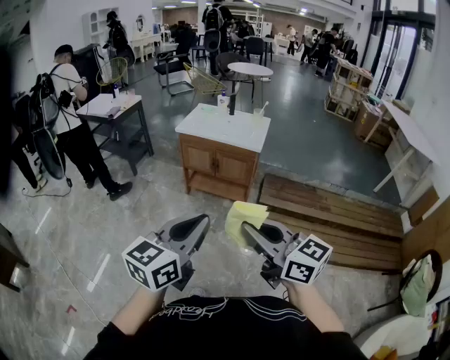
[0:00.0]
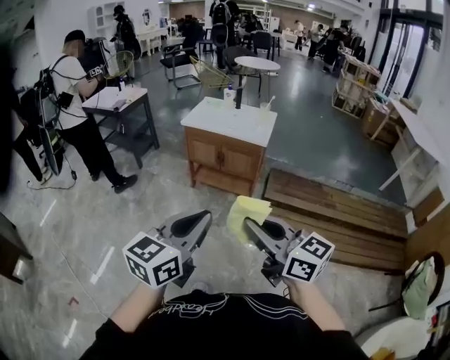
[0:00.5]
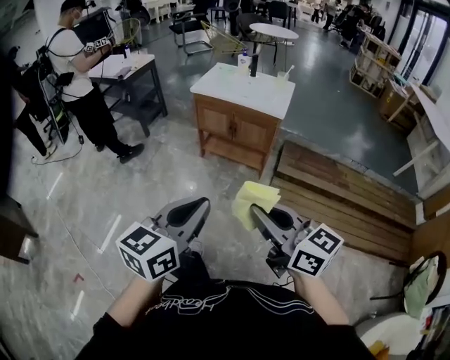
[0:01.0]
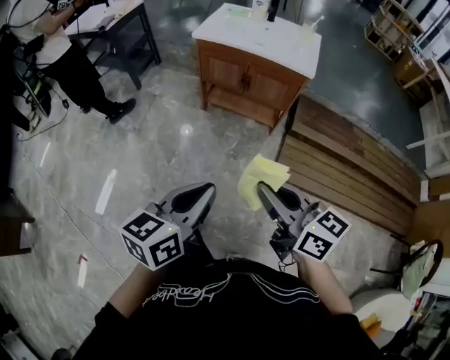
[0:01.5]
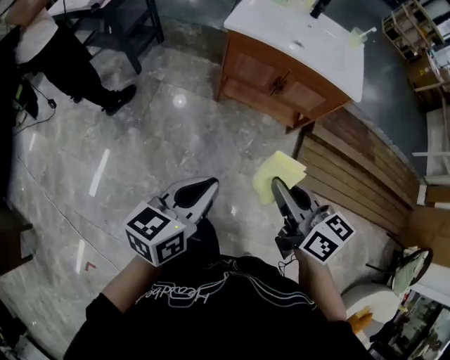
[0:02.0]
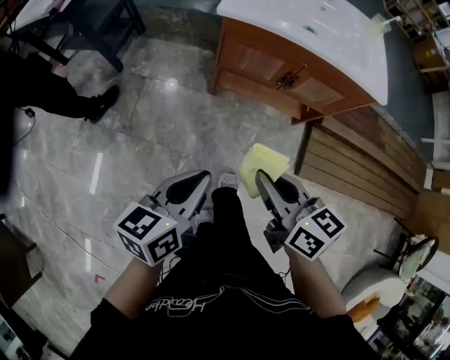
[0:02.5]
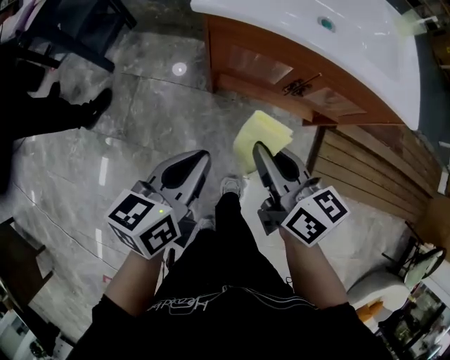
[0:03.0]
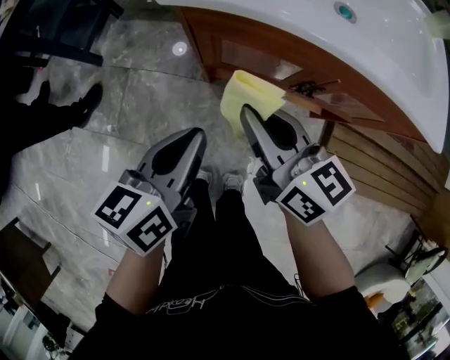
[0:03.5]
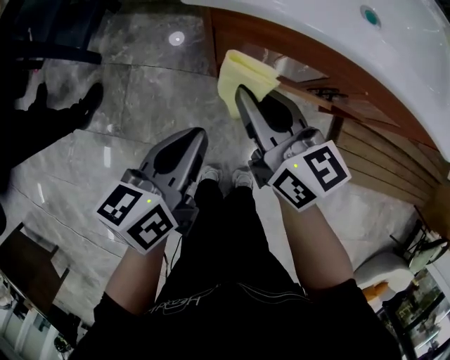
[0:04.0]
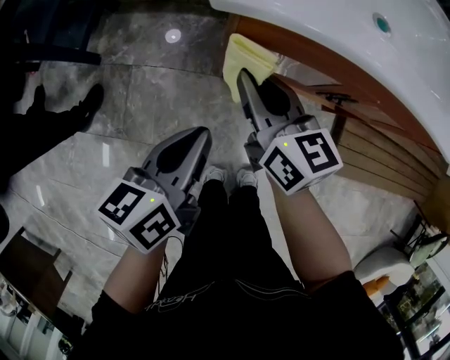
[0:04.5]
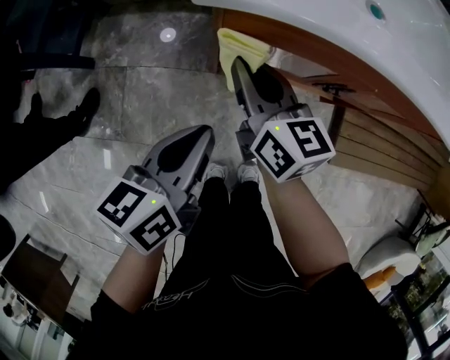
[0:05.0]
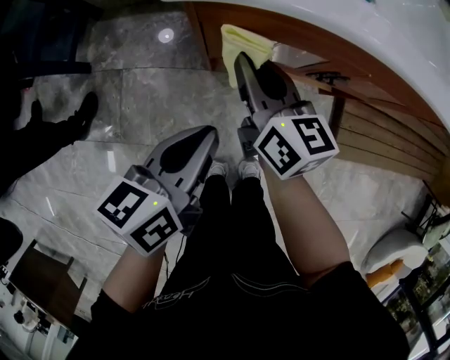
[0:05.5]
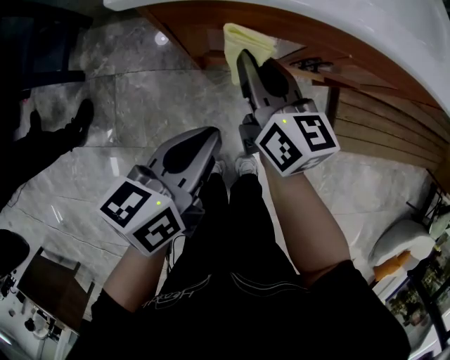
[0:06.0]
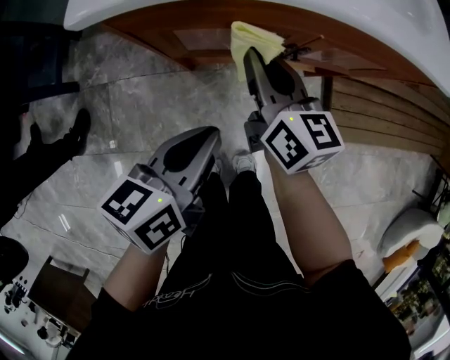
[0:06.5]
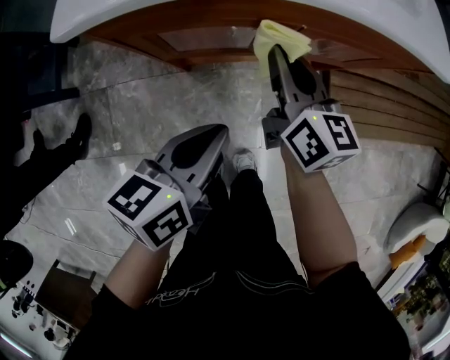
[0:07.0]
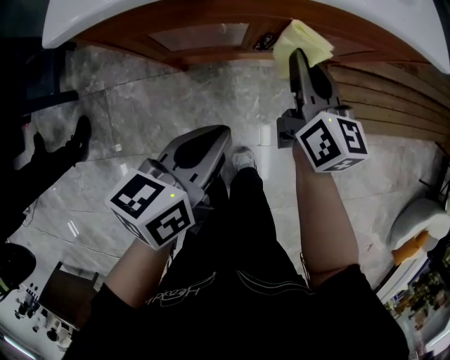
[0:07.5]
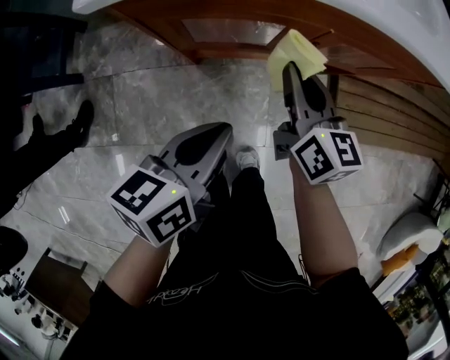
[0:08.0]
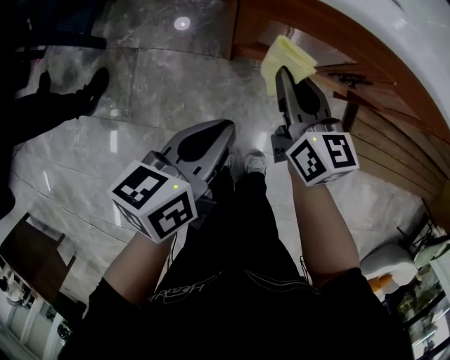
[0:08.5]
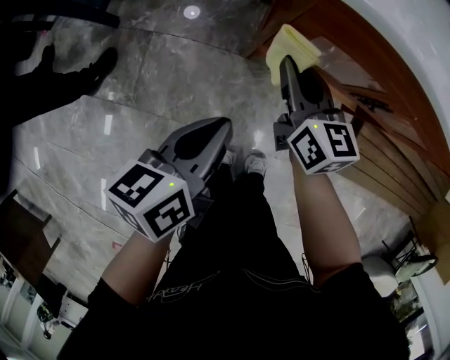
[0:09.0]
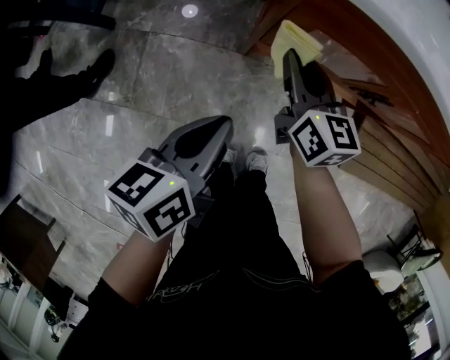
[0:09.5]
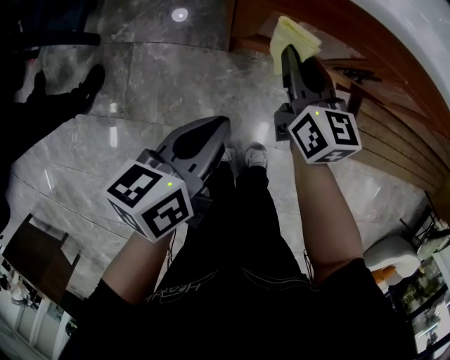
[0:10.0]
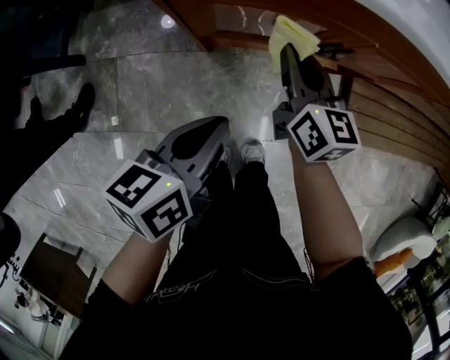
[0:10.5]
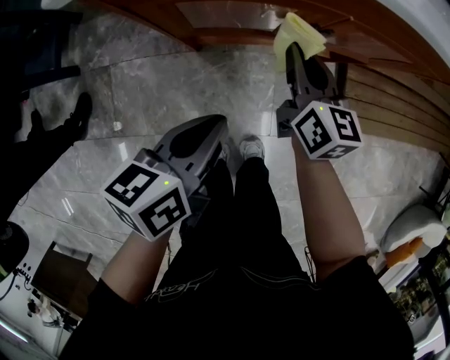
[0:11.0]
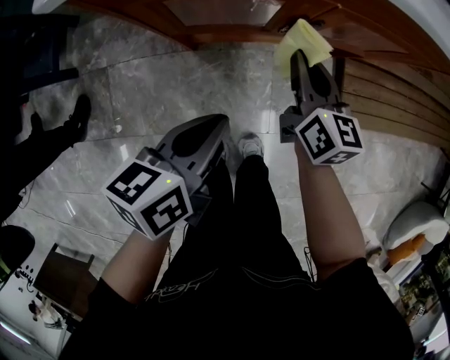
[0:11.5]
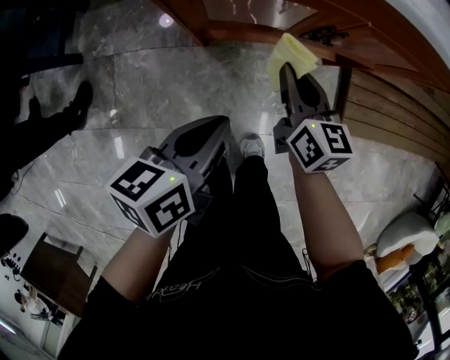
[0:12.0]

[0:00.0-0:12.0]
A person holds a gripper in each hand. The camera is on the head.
0:00.0 to 0:02.0: The pair of grippers is taken forward and to the left, some 40 cm. The two grippers go approximately 25 cm downward. The right gripper swivels roughly 30 degrees. Meanwhile the left gripper turns by roughly 30 degrees.
0:02.0 to 0:04.0: The grippers both shift forward and downward by approximately 50 cm.
0:04.0 to 0:06.0: Both grippers travel together to the right, roughly 5 cm. The right gripper changes its angle by about 20 degrees.
0:06.0 to 0:08.0: The left gripper shifts roughly 5 cm to the right, while the right gripper moves to the right, roughly 10 cm.
0:08.0 to 0:10.0: The grippers both shift to the left by approximately 10 cm.
0:10.0 to 0:12.0: The two grippers go some 10 cm to the right.

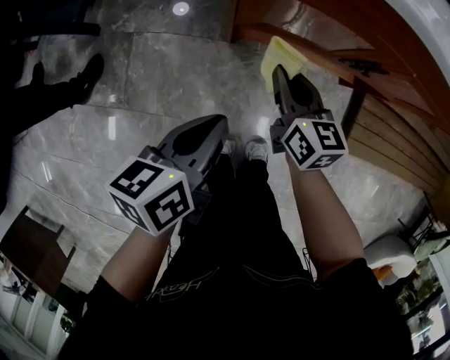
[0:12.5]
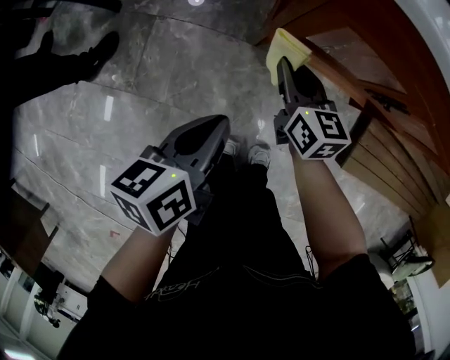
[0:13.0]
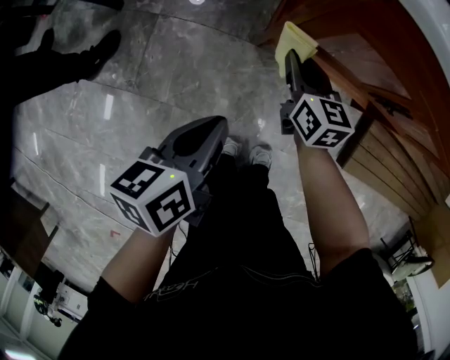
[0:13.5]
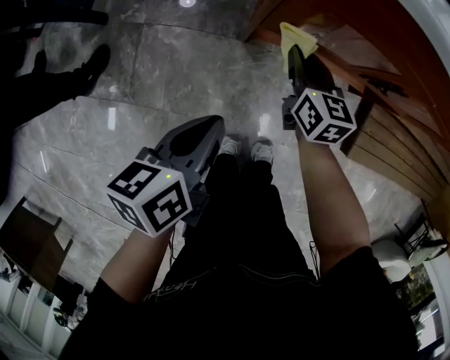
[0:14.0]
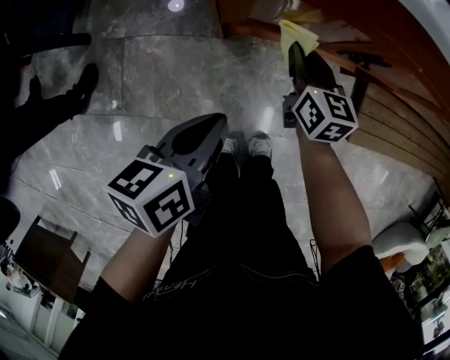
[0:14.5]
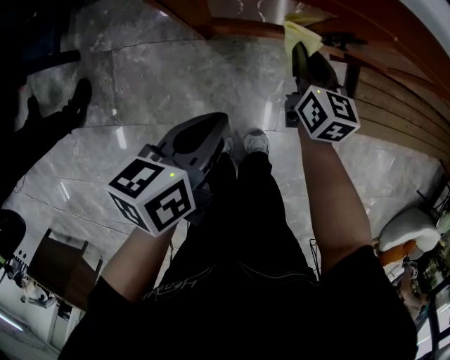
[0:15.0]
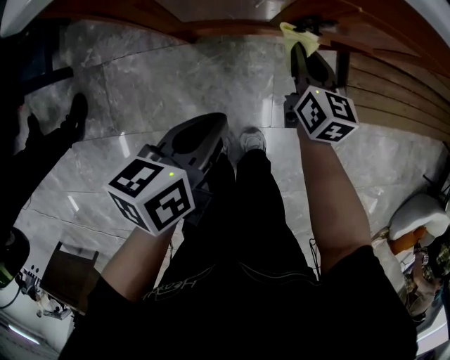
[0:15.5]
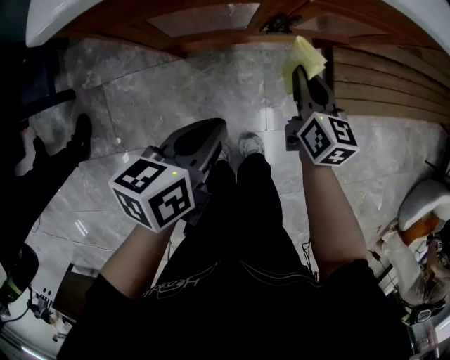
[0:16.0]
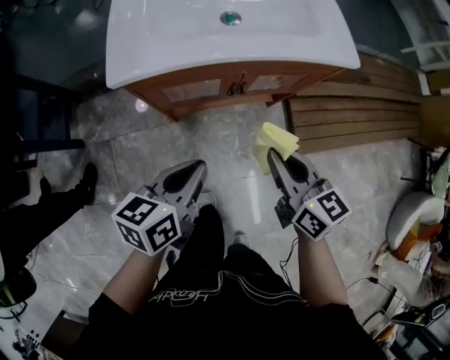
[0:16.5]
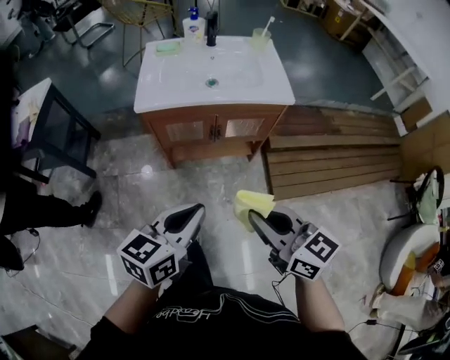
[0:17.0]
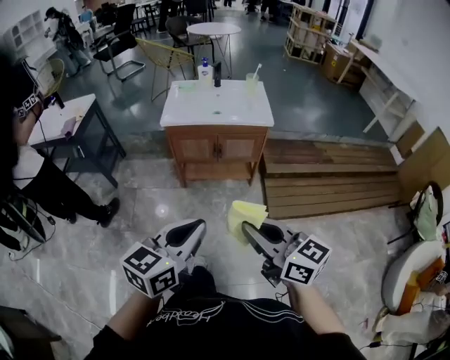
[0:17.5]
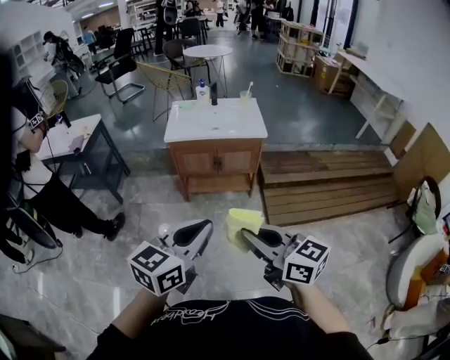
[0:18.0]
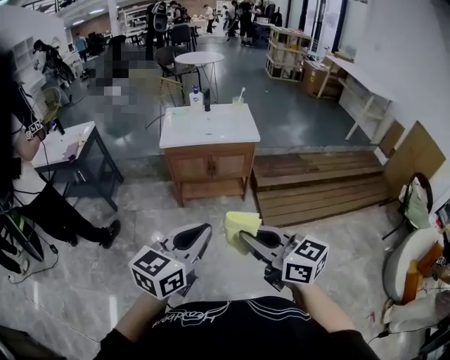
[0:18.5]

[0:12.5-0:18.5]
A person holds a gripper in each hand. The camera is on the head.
0:12.5 to 0:14.5: The right gripper moves forward, approximately 5 cm. The left gripper goes to the left and returns, roughly 10 cm each way.
0:14.5 to 0:16.5: The left gripper moves upward and to the right, roughly 20 cm, and changes its angle by roughly 30 degrees. The right gripper heads upward, to the right and backward, covering about 35 cm.
0:16.5 to 0:18.5: The two grippers travel together, backward, approximately 50 cm. Both grippers move upward, some 35 cm. The right gripper rotates roughly 30 degrees, while the left gripper changes its angle by some 40 degrees.

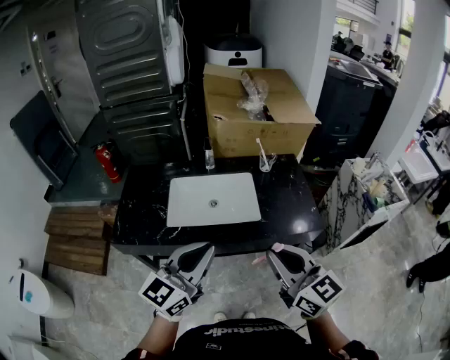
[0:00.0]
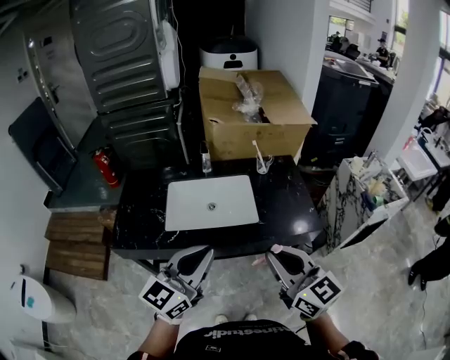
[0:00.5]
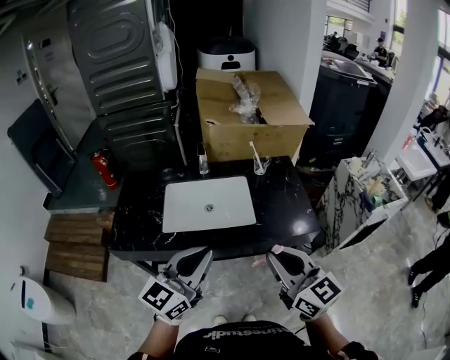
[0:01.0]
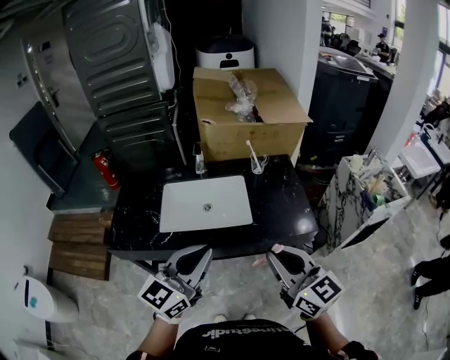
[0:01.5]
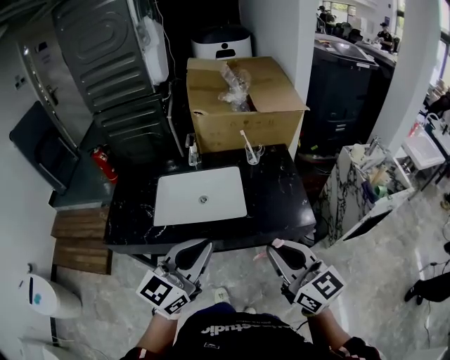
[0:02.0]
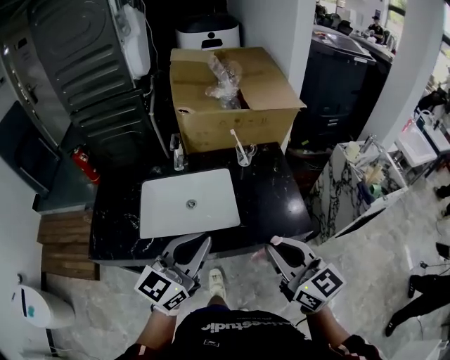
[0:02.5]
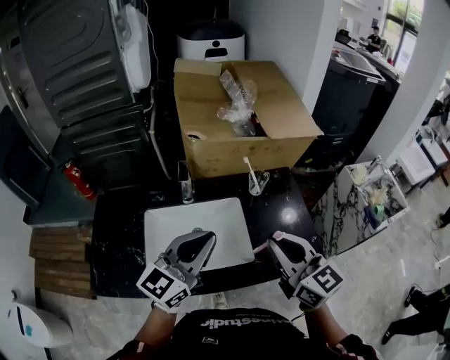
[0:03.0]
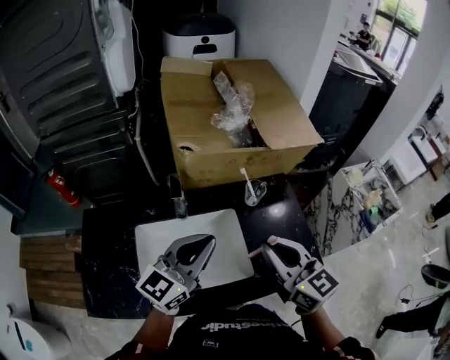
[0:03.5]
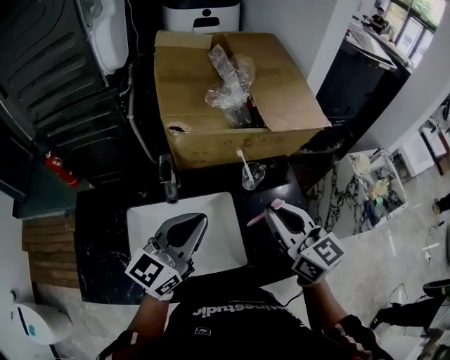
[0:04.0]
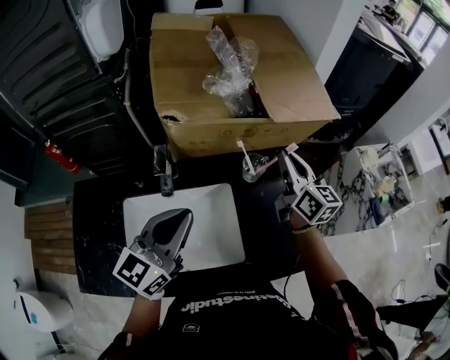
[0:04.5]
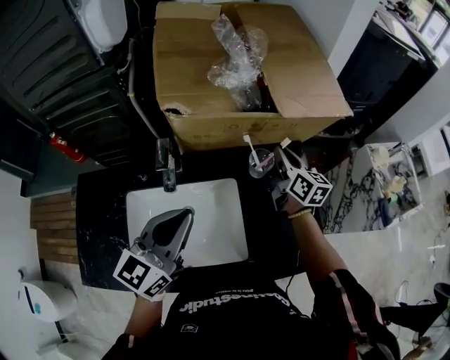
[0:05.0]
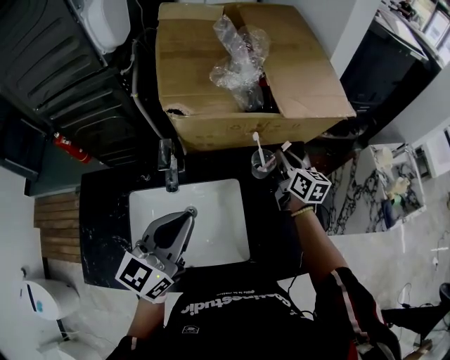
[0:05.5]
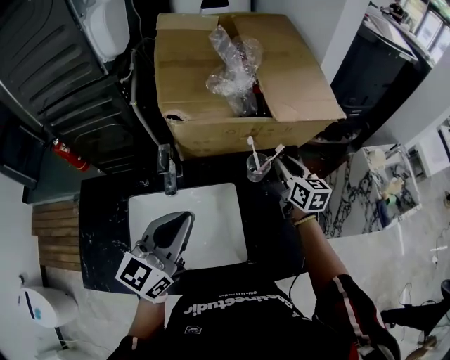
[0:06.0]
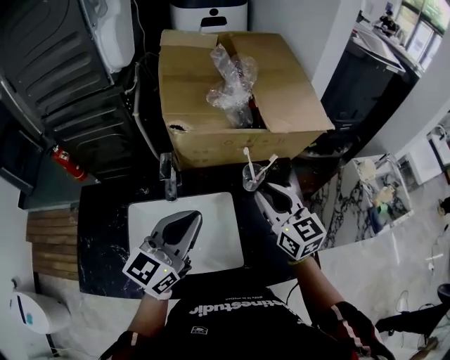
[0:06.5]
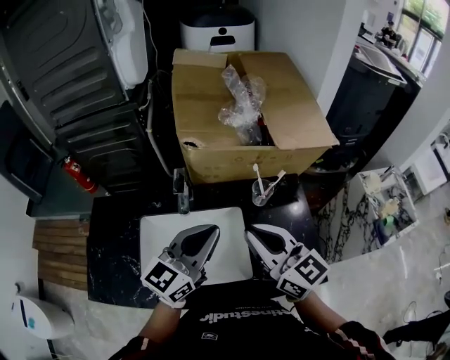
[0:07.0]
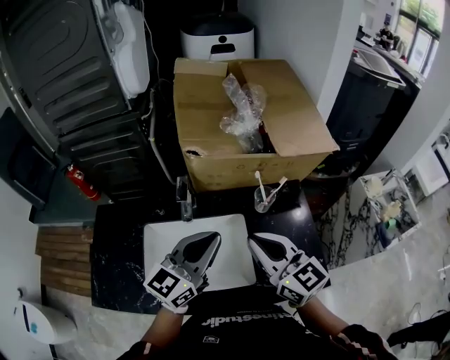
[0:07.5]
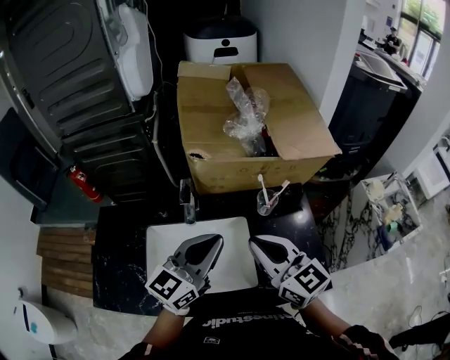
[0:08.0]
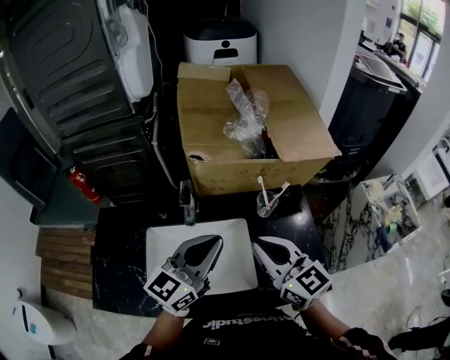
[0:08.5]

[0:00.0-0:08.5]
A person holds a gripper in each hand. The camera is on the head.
0:00.0 to 0:02.0: The grippers both shift to the right by roughly 10 cm.
0:02.0 to 0:04.0: Both grippers travel together forward, roughly 35 cm.
0:04.0 to 0:06.5: The right gripper shifts about 5 cm downward, and moves some 20 cm forward and comes back.
0:06.5 to 0:08.5: The right gripper moves backward, to the left and upward, about 15 cm, and closes up.
